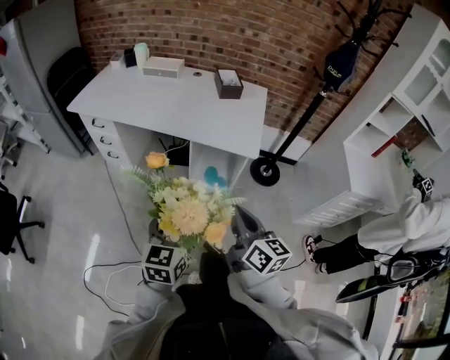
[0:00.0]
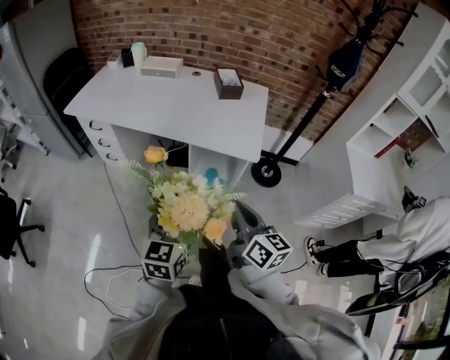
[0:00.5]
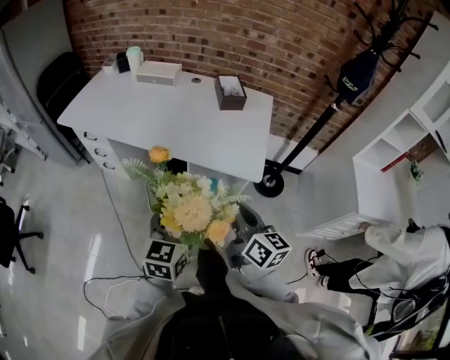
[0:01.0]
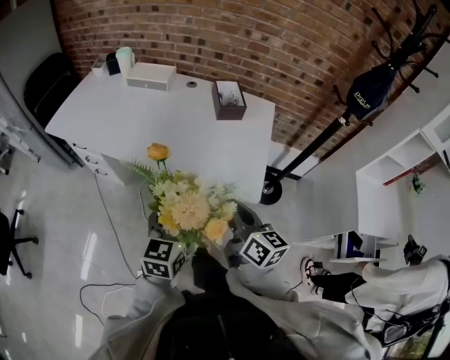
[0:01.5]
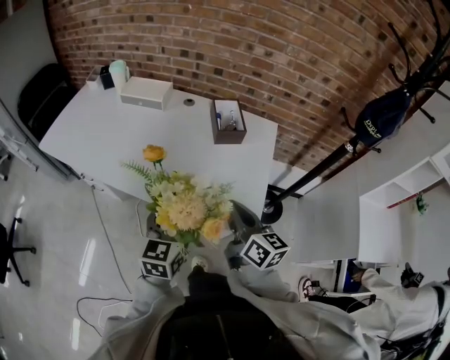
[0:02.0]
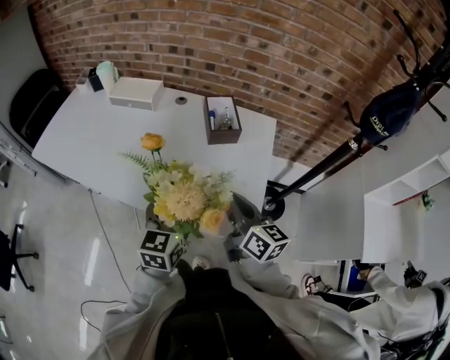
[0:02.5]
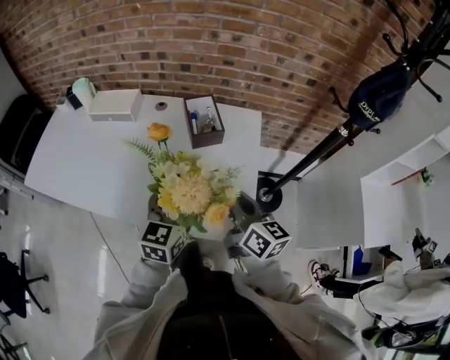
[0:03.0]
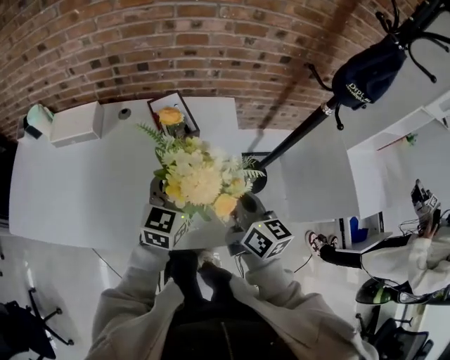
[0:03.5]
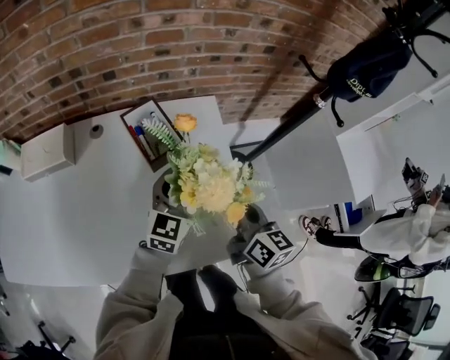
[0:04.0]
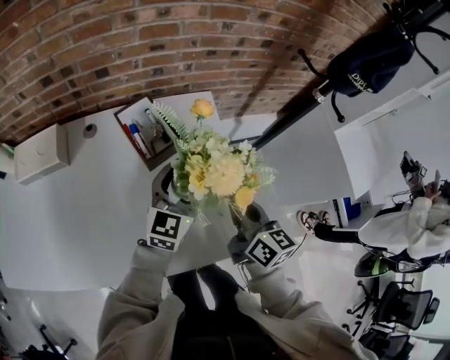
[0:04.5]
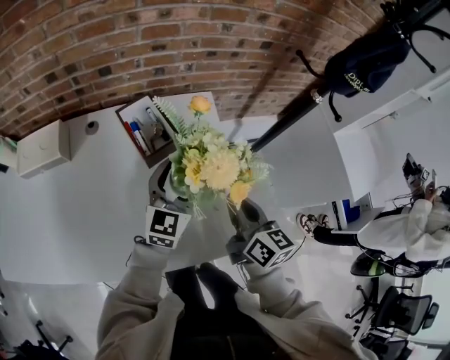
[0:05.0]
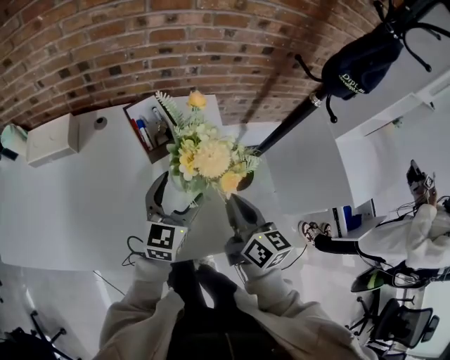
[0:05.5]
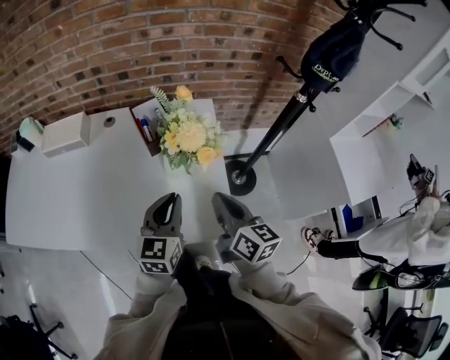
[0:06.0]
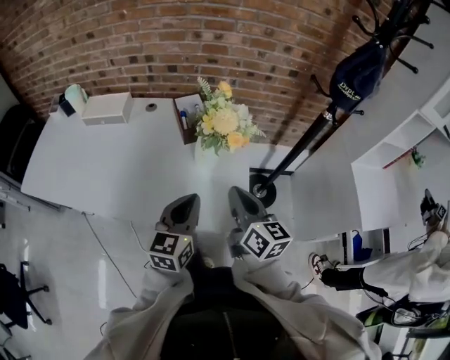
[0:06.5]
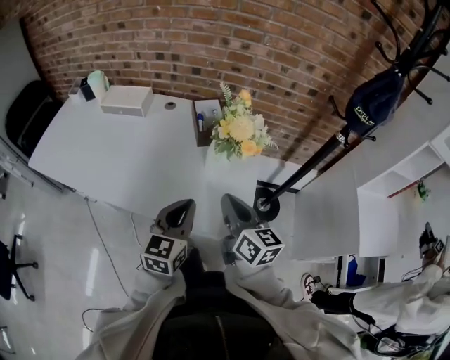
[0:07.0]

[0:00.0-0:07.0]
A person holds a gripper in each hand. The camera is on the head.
0:00.0 to 0:02.0: The two grippers travel together, forward, some 40 cm.
0:02.0 to 0:03.5: The two grippers go some 20 cm forward and to the right. The left gripper swivels about 30 degrees, while the right gripper swivels approximately 20 degrees.
0:03.5 to 0:05.0: The left gripper is displaced forward by approximately 5 cm. The right gripper ends up approximately 5 cm from where it was.
0:05.0 to 0:07.0: The right gripper shifts by roughly 15 cm, and swivels roughly 30 degrees, while the left gripper moves some 25 cm, rotates some 30 degrees, and closes its fingers.

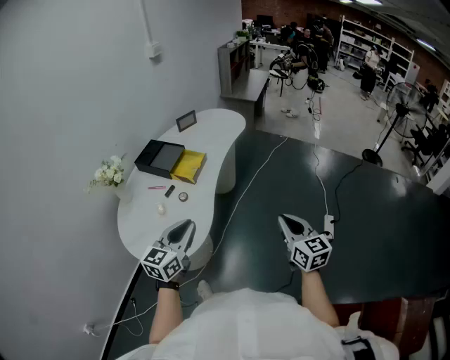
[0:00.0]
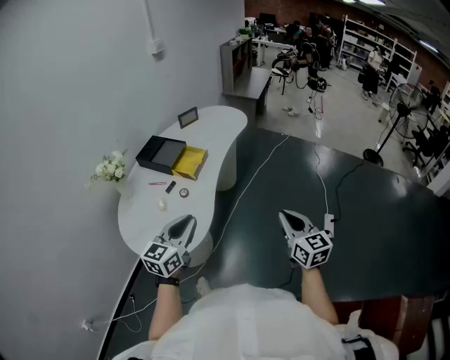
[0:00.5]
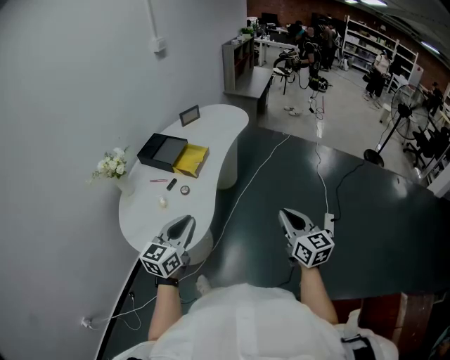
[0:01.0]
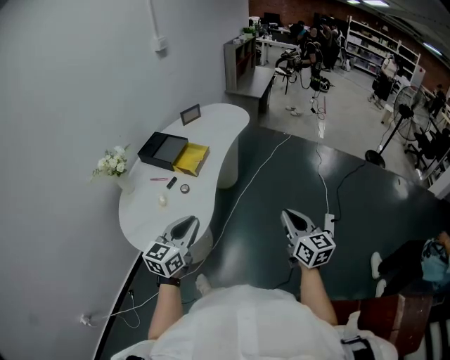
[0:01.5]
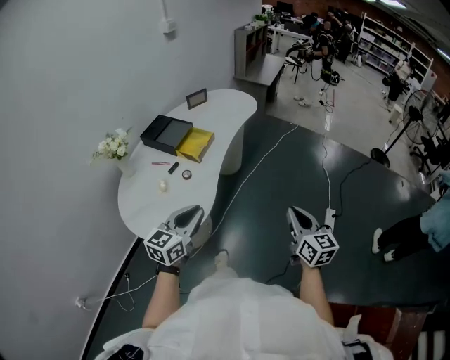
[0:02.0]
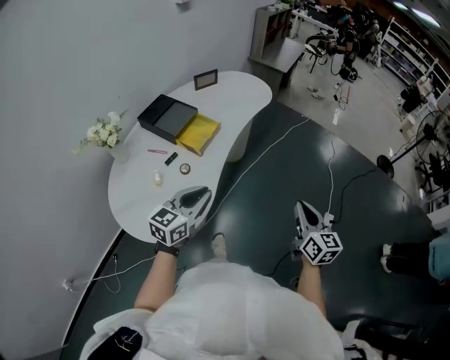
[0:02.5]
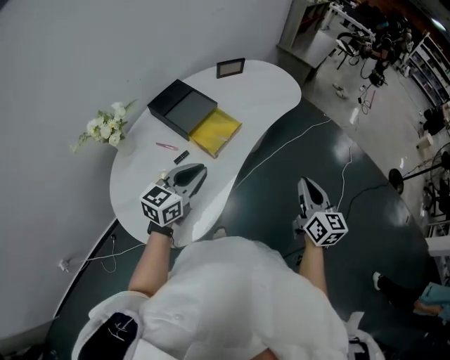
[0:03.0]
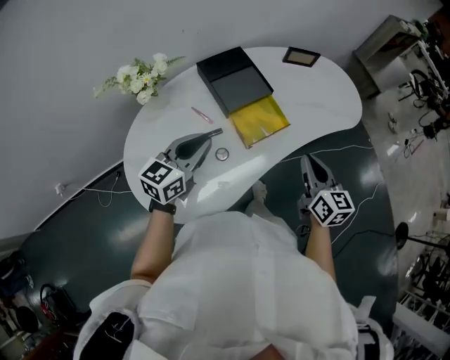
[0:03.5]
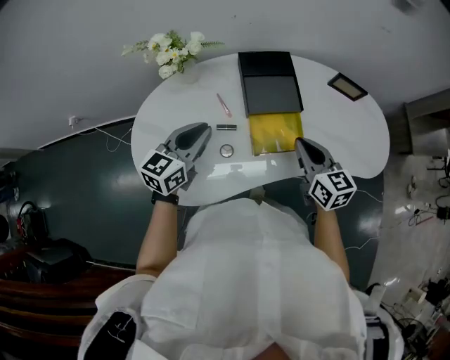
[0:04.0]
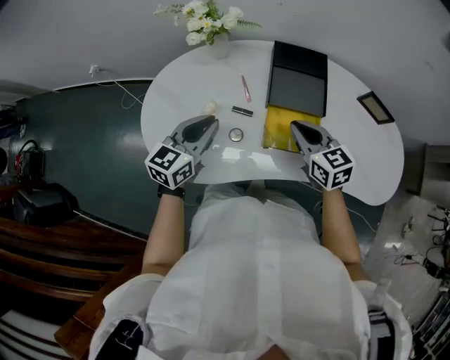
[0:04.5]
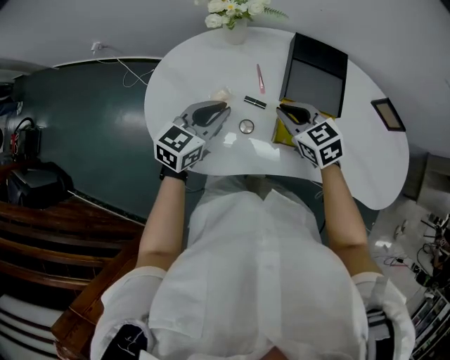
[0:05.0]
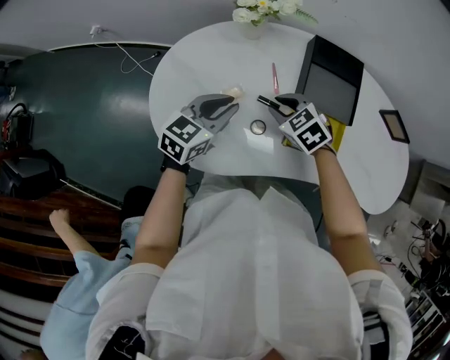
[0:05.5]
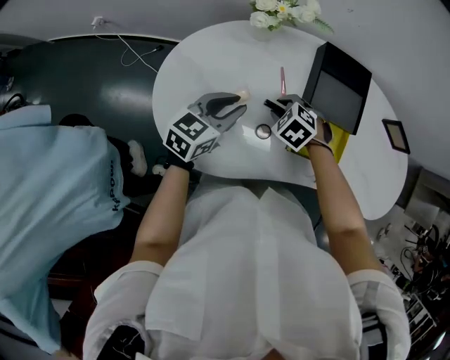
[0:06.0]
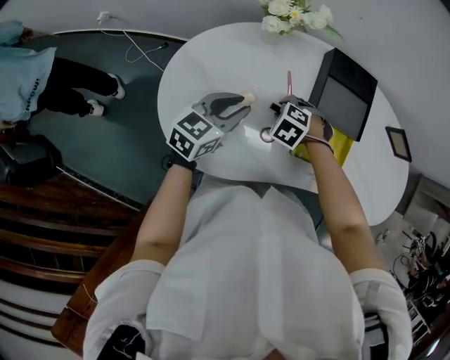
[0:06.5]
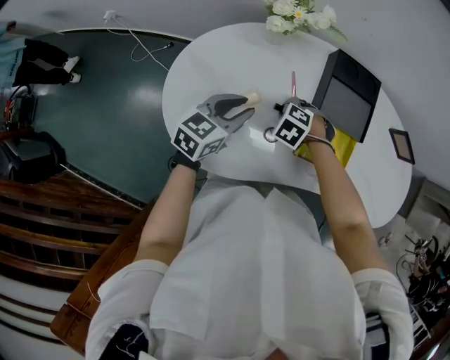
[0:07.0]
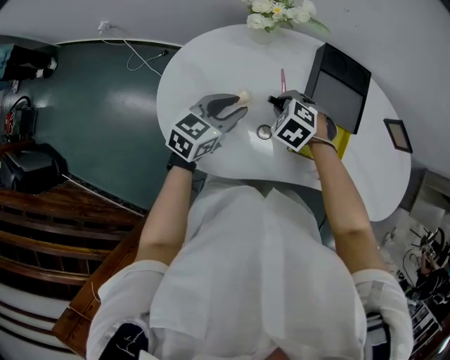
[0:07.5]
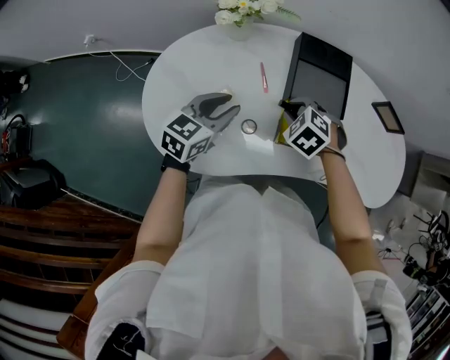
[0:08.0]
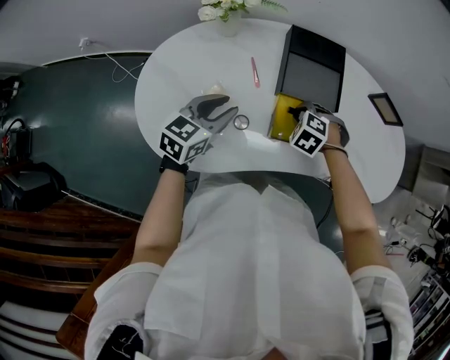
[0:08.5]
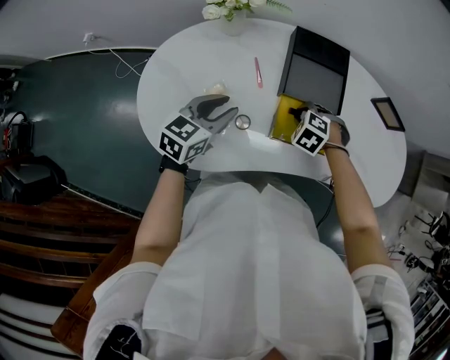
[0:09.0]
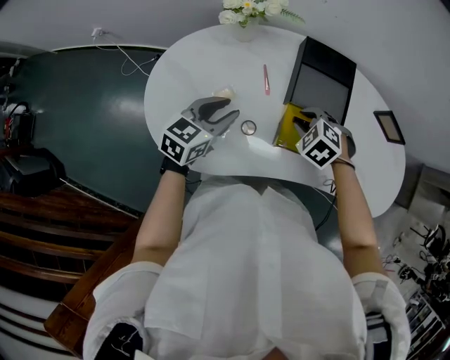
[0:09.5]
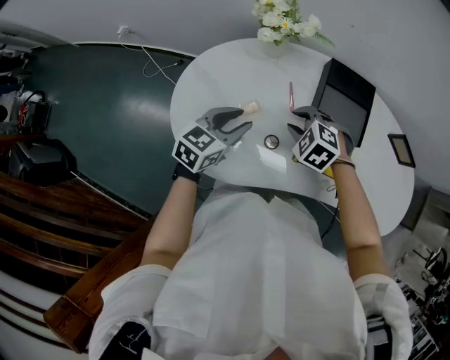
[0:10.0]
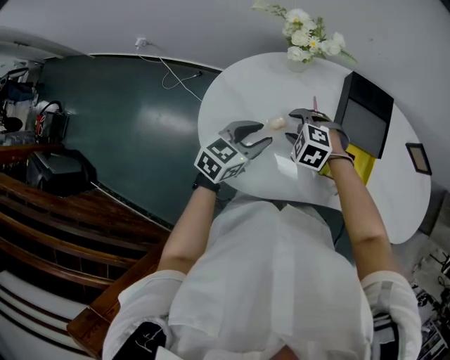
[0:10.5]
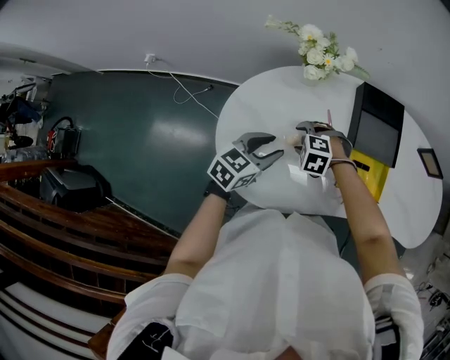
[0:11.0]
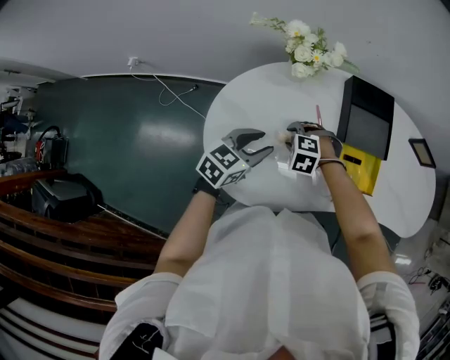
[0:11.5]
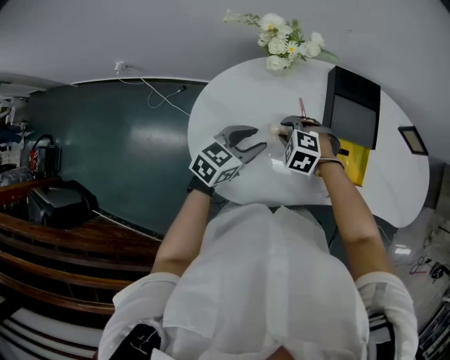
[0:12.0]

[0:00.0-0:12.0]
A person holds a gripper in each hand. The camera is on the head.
0:00.0 to 0:02.0: There are only small adjustments of the grippers.
0:02.0 to 0:04.0: The right gripper shifts by about 60 cm, and changes its angle by about 70 degrees. Meanwhile the left gripper changes place by roughly 35 cm, and swivels roughly 50 degrees.
0:04.0 to 0:06.0: The left gripper heads downward and to the left, covering about 10 cm; the right gripper heads to the left, downward and forward, covering about 30 cm, angles its fingers downward, by approximately 50 degrees, and opens up.
0:06.0 to 0:08.0: The right gripper changes place by about 10 cm.
0:08.0 to 0:10.0: The right gripper reaches some 5 cm downward, then returns.
0:10.0 to 0:12.0: The right gripper moves to the left, approximately 10 cm, and opens and closes again.

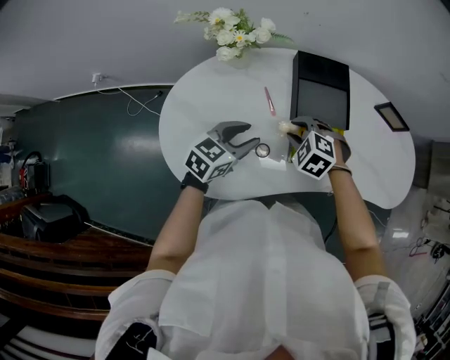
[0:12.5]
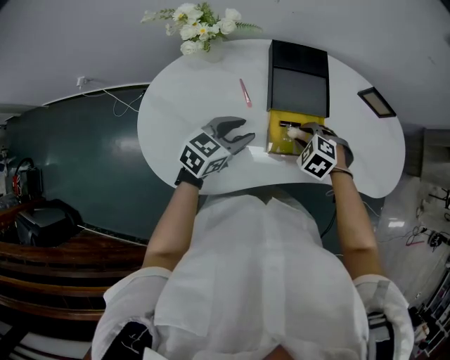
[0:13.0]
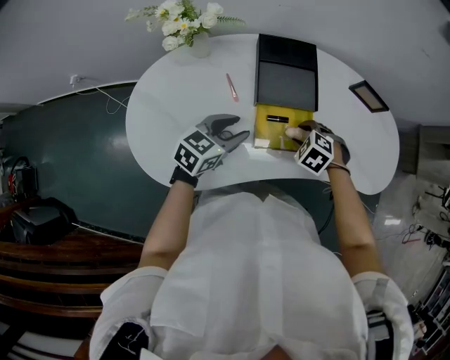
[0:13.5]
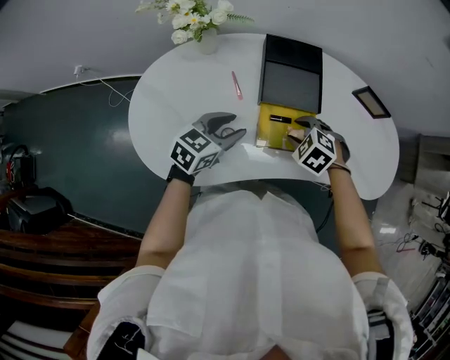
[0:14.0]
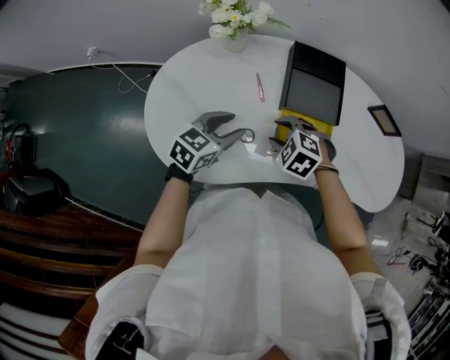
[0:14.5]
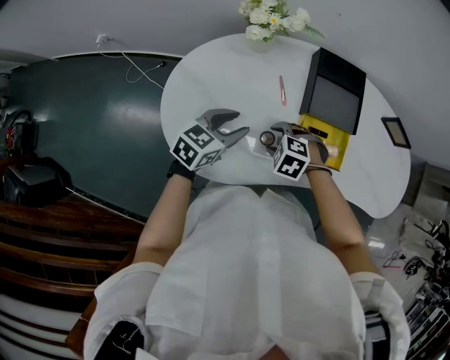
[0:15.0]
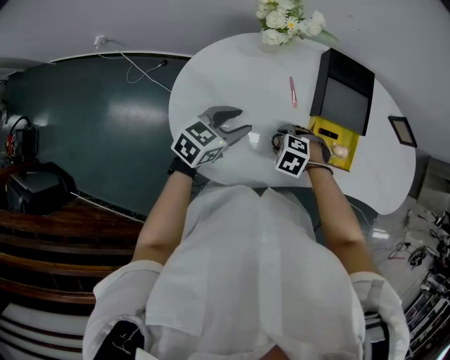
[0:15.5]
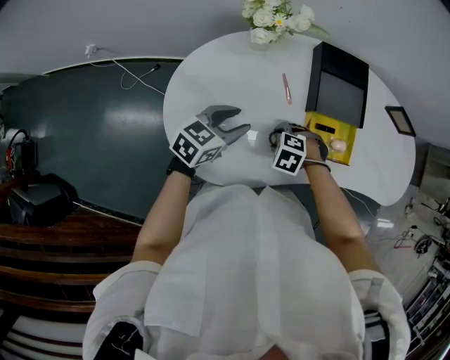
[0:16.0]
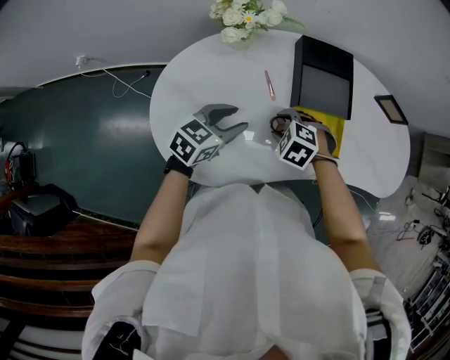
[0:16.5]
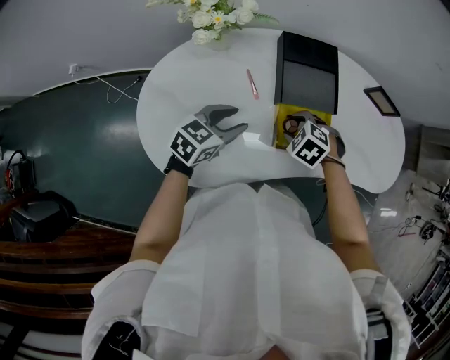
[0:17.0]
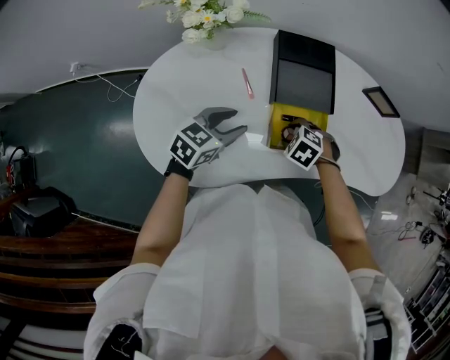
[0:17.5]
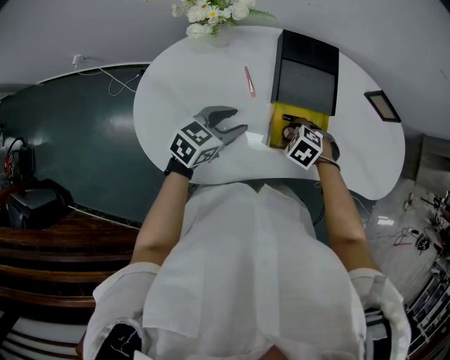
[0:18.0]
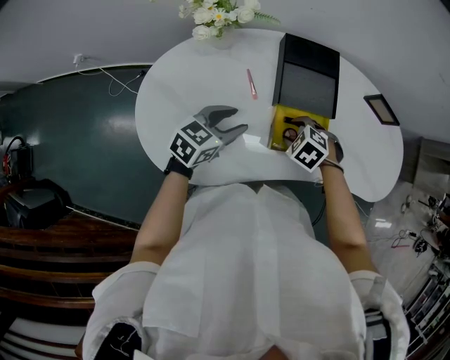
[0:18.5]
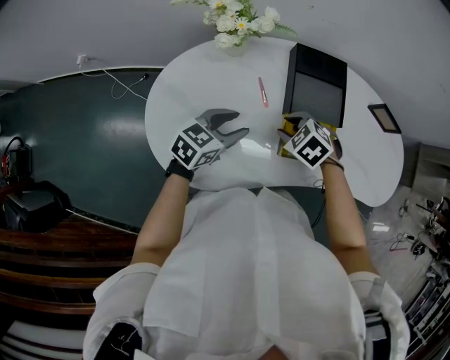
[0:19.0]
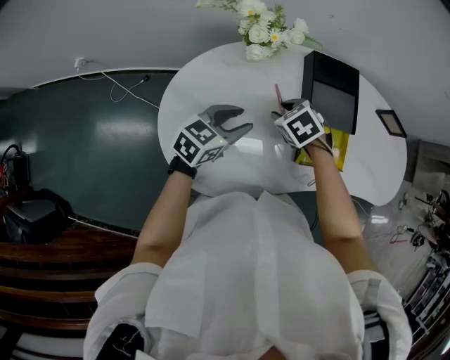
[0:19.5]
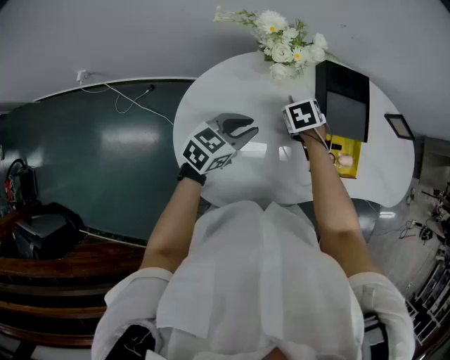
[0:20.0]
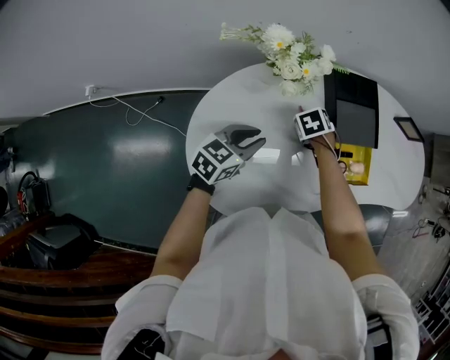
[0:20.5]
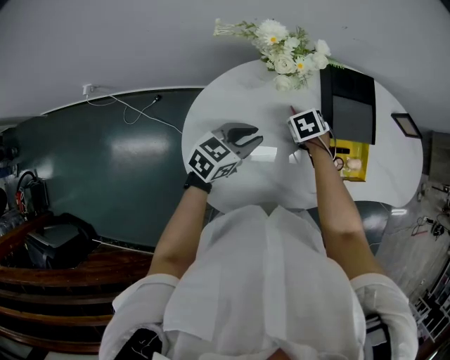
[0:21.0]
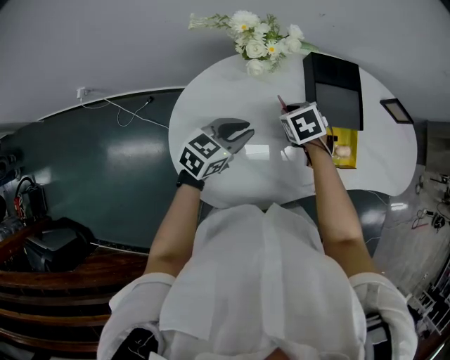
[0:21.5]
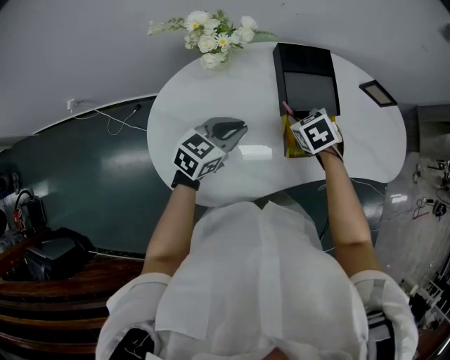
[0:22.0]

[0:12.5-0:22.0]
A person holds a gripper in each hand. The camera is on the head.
0:12.5 to 0:14.5: The left gripper goes to the right and returns, approximately 10 cm each way; the right gripper moves some 15 cm to the right and comes back.
0:14.5 to 0:16.5: The right gripper goes downward and returns, some 10 cm each way.
0:16.5 to 0:18.0: The left gripper changes place by roughly 5 cm, while the right gripper ends up approximately 15 cm from where it was.
0:18.0 to 0:20.0: The right gripper moves some 20 cm, and rotates around the line of its fingers by roughly 40 degrees, clockwise from behind, while the left gripper changes place by about 15 cm, and closes its fingers.
0:20.0 to 0:22.0: The right gripper shifts by approximately 15 cm. Meanwhile the left gripper shifts by some 10 cm.
